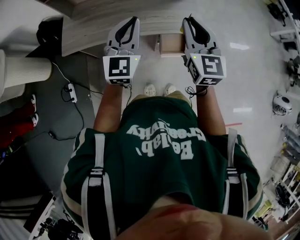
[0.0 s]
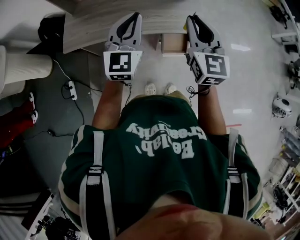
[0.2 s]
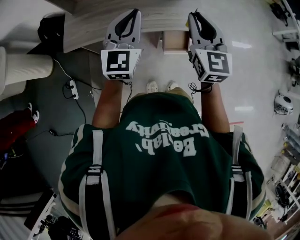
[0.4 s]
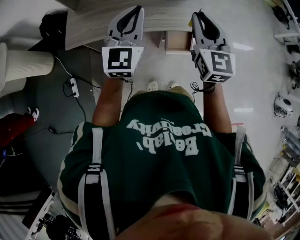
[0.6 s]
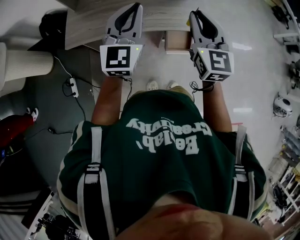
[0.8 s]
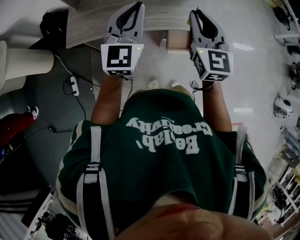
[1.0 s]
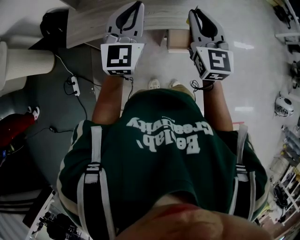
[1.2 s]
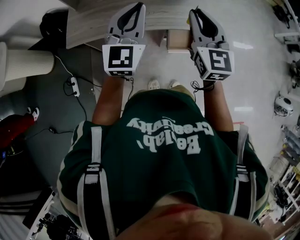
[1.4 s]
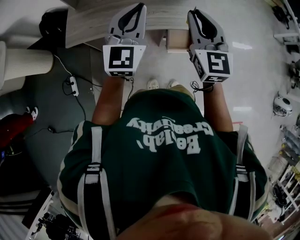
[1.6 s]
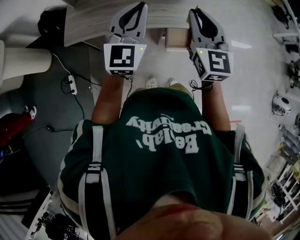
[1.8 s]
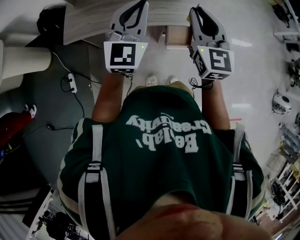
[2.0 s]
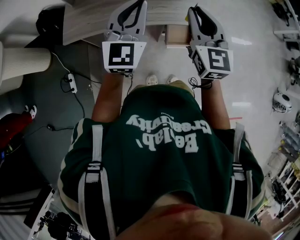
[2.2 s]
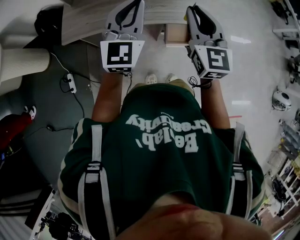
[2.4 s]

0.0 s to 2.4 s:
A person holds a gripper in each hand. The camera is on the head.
0.0 to 1.2 s: The left gripper moves roughly 5 cm.
1.2 to 2.4 s: The grippers move only a little.

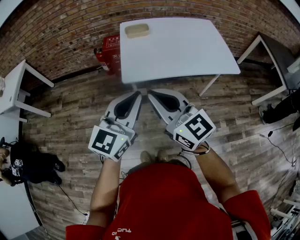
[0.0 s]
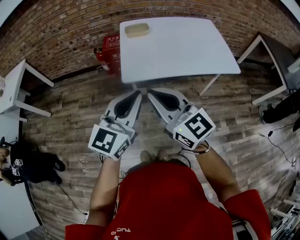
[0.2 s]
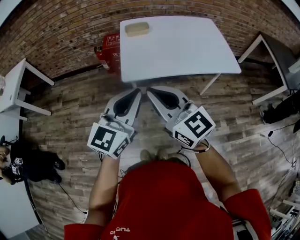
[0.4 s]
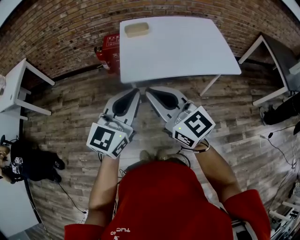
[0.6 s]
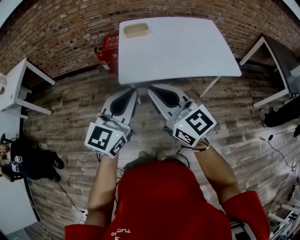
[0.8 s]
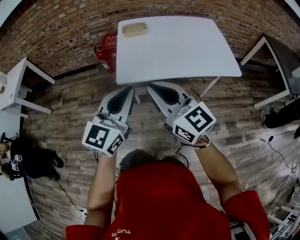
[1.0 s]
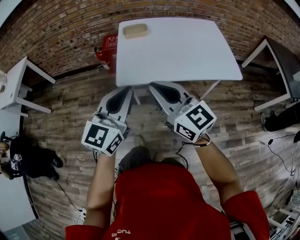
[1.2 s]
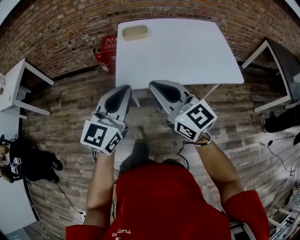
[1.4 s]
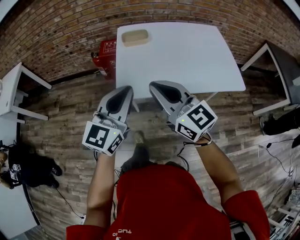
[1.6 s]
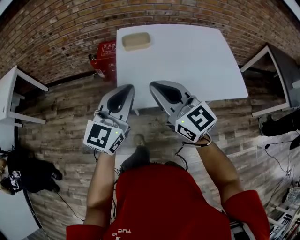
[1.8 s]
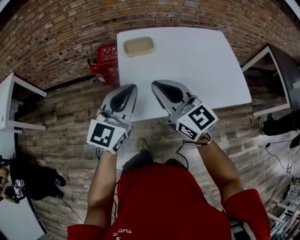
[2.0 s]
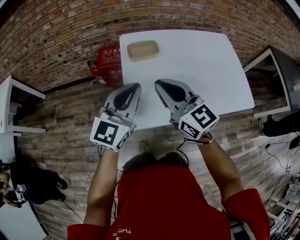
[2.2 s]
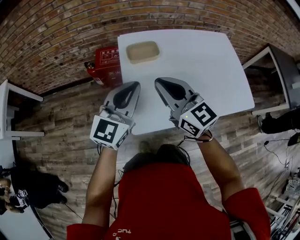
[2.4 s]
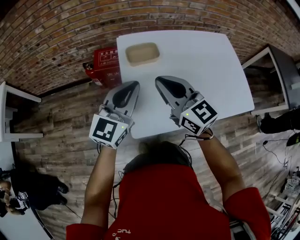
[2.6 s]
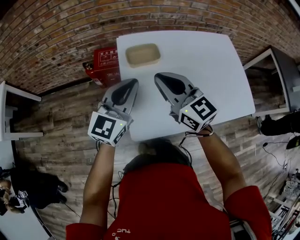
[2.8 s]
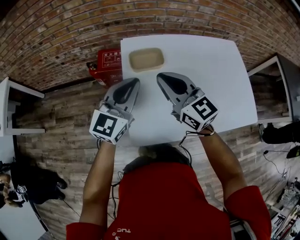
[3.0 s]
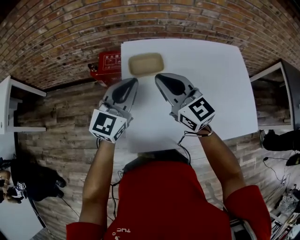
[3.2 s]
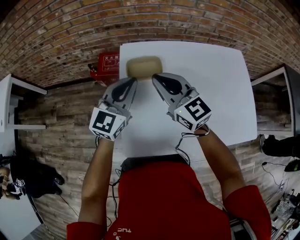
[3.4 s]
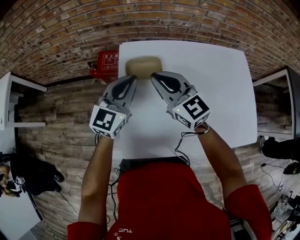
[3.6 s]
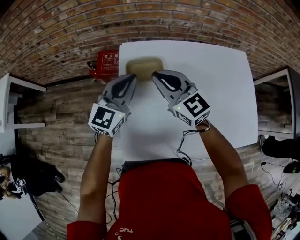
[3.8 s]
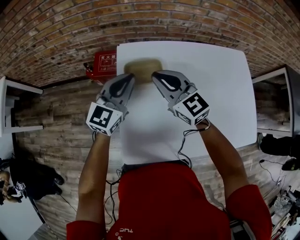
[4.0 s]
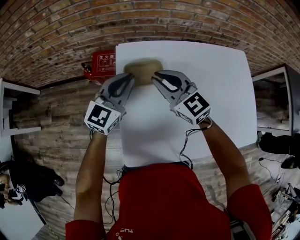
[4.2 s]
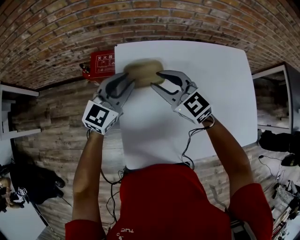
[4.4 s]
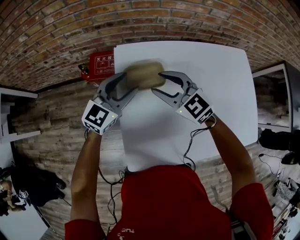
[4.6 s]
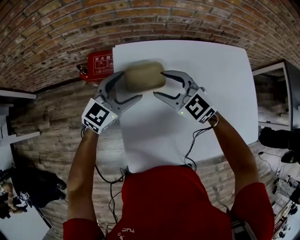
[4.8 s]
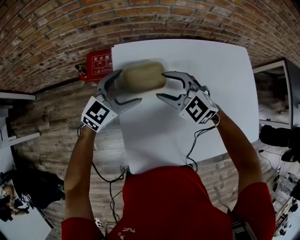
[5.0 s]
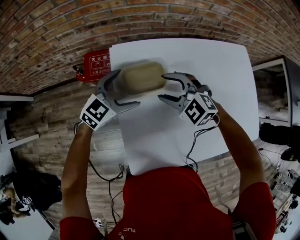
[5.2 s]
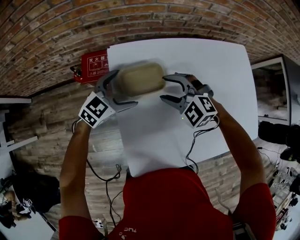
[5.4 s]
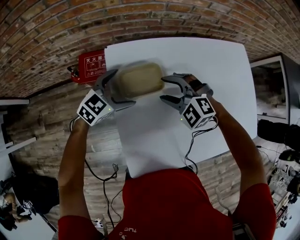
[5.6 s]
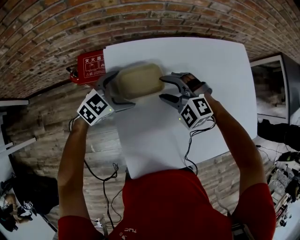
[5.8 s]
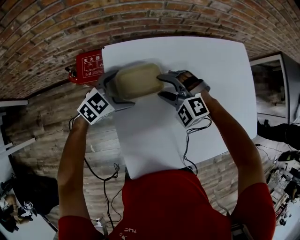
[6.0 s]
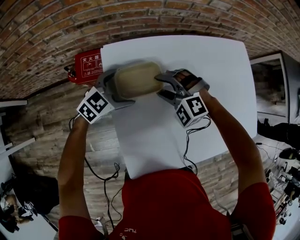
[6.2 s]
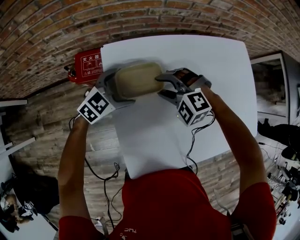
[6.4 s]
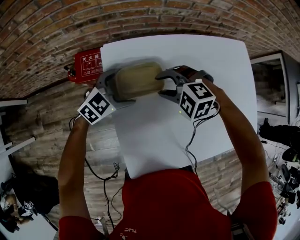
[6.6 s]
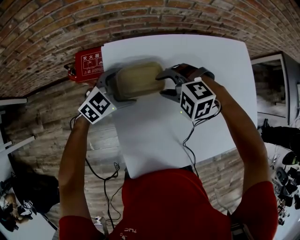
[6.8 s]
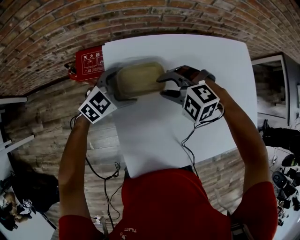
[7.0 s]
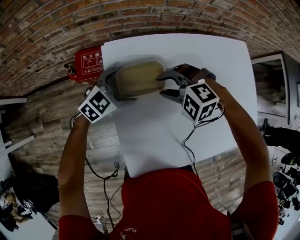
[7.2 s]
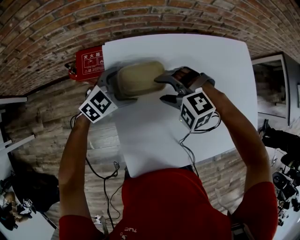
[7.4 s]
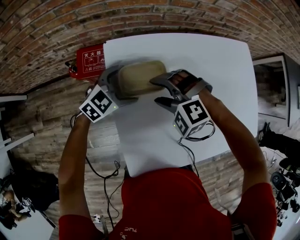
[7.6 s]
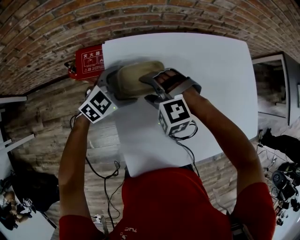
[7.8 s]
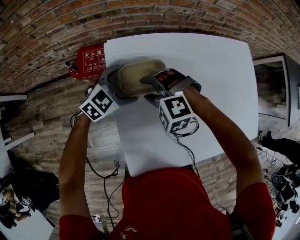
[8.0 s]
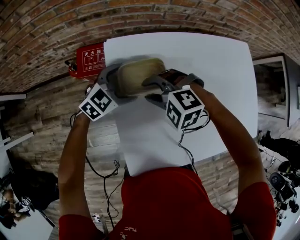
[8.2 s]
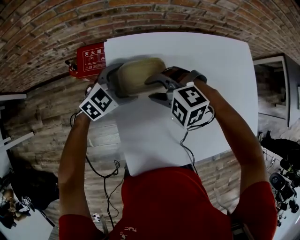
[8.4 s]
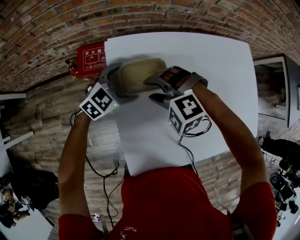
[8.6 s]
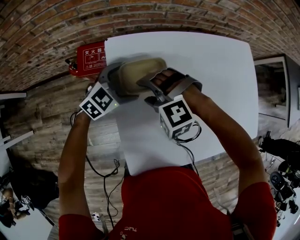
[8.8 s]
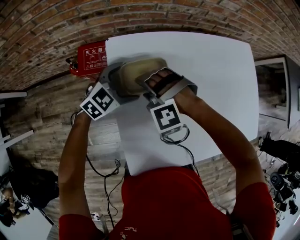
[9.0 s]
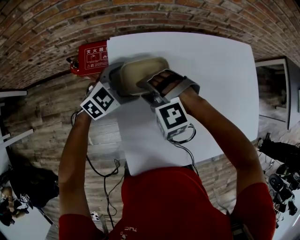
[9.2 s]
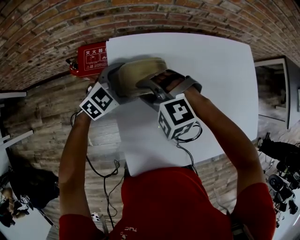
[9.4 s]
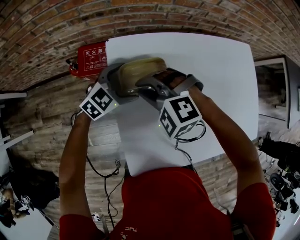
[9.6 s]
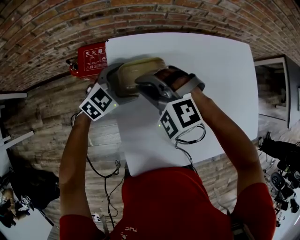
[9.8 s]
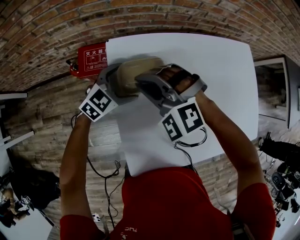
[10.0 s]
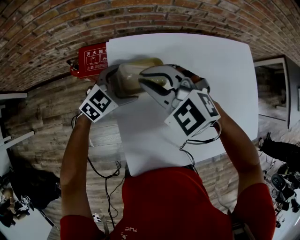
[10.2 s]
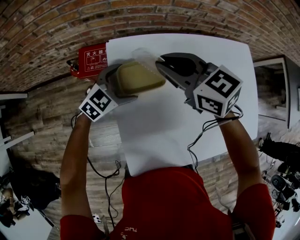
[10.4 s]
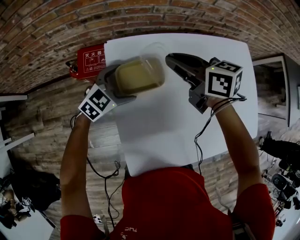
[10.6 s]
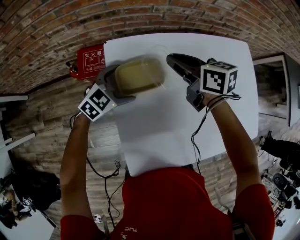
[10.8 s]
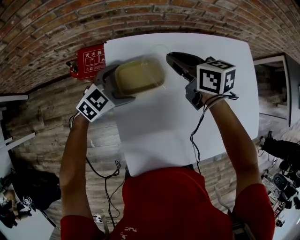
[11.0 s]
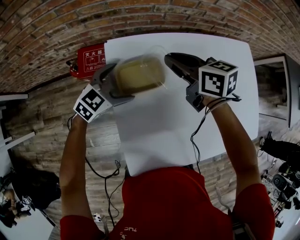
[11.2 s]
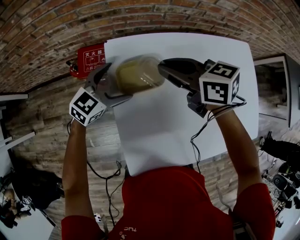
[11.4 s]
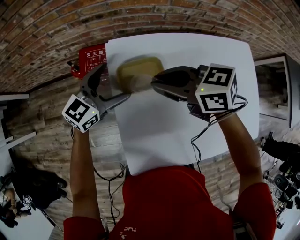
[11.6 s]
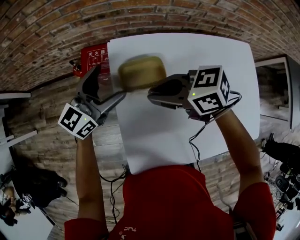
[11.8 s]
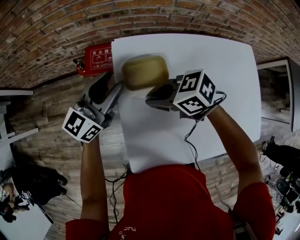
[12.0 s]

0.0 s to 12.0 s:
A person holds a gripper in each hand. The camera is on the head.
0.0 to 1.6 s: The grippers both shift forward by about 15 cm.
1.6 to 3.0 s: The grippers both shift forward by approximately 30 cm.
3.0 to 4.4 s: The grippers both shift forward and downward by about 15 cm. The right gripper swivels approximately 20 degrees.
4.4 to 6.0 s: The two grippers go roughly 15 cm downward. The left gripper rotates some 40 degrees, and opens up; the right gripper changes its angle by about 50 degrees, and opens its fingers.
6.0 to 7.6 s: The right gripper shifts by about 5 cm.
7.6 to 9.0 s: The right gripper ends up about 5 cm from where it was.
9.0 to 10.4 s: The right gripper is displaced upward and forward by approximately 15 cm, rolls clockwise, seen from behind, by roughly 70 degrees, and closes its fingers.
10.4 to 12.0 s: The right gripper goes up and down, about 10 cm each way, reversing 2 times, and turns by about 40 degrees, while the left gripper goes about 15 cm upward, points its fingers approximately 40 degrees further upward, and closes up.

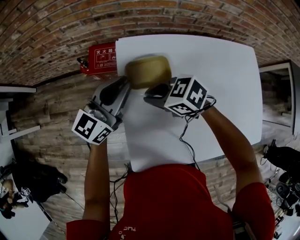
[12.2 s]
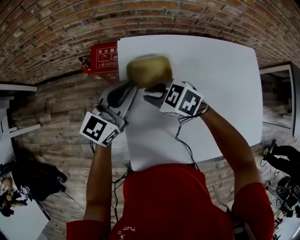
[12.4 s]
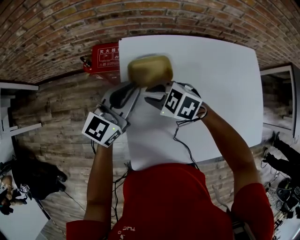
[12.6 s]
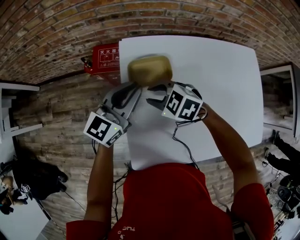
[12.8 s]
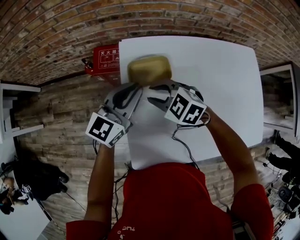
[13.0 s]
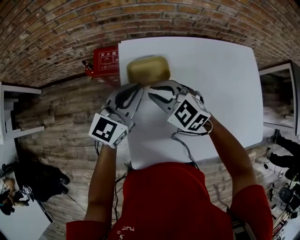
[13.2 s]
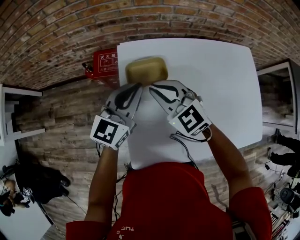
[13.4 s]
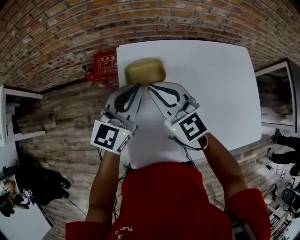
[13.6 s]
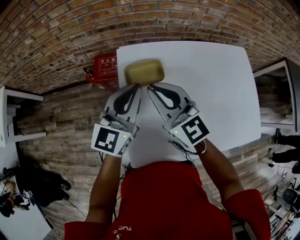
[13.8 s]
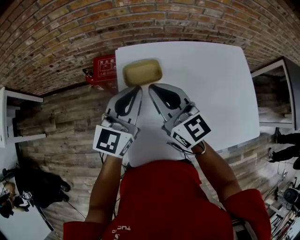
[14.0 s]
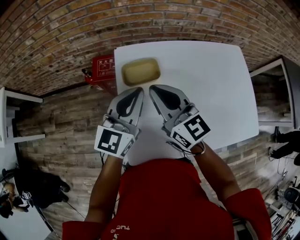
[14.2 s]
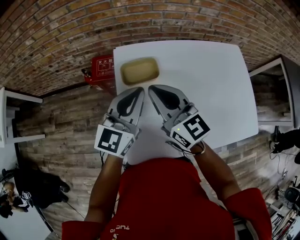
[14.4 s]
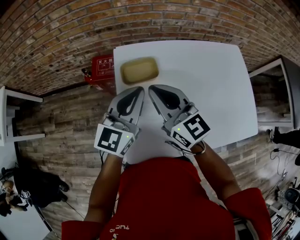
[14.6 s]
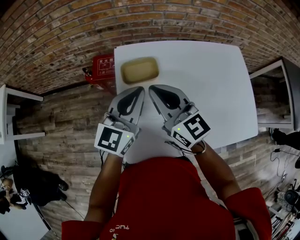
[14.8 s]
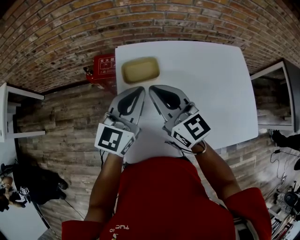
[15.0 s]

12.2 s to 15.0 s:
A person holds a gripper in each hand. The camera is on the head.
12.2 to 13.6 s: The left gripper changes place by roughly 10 cm; the right gripper is displaced upward by about 10 cm, and tips its fingers upward by roughly 30 degrees.
13.6 to 15.0 s: Both grippers move backward, approximately 5 cm. The right gripper turns by about 20 degrees.

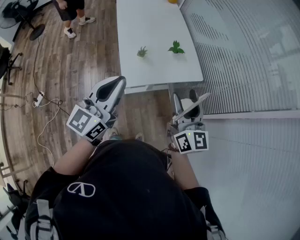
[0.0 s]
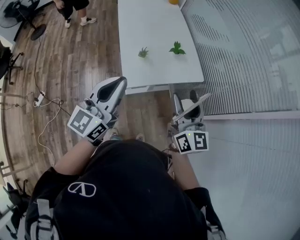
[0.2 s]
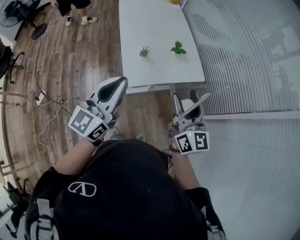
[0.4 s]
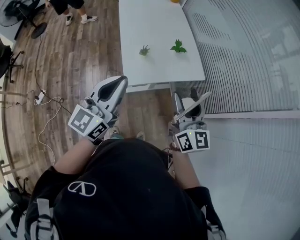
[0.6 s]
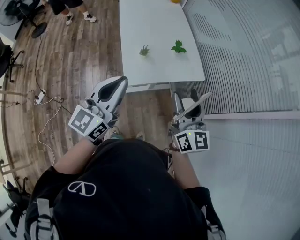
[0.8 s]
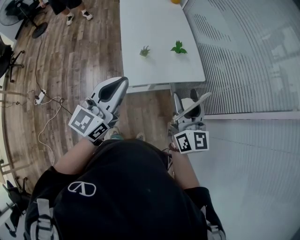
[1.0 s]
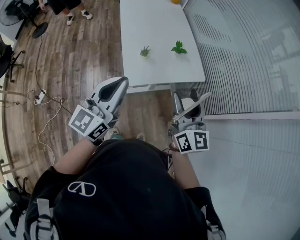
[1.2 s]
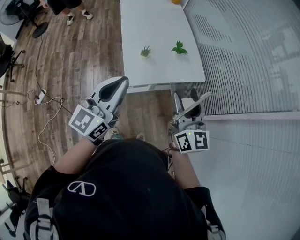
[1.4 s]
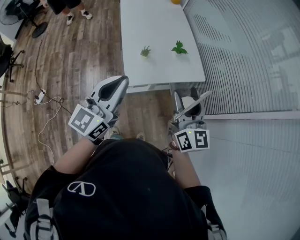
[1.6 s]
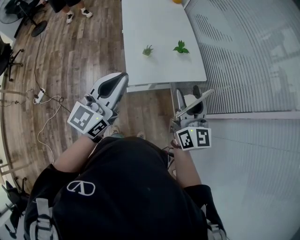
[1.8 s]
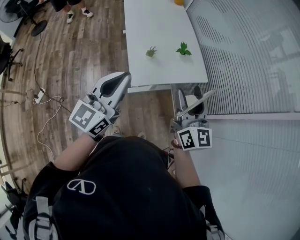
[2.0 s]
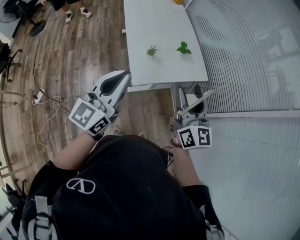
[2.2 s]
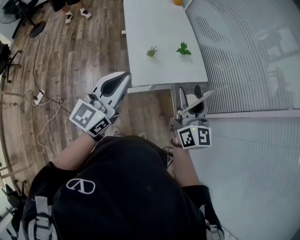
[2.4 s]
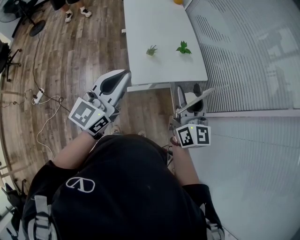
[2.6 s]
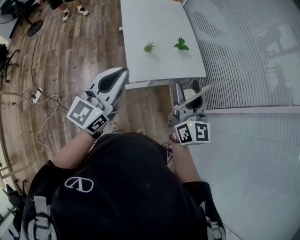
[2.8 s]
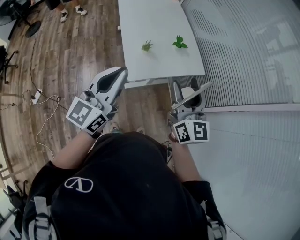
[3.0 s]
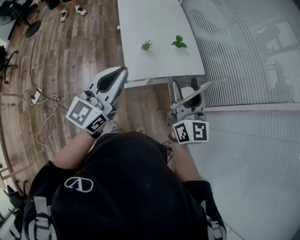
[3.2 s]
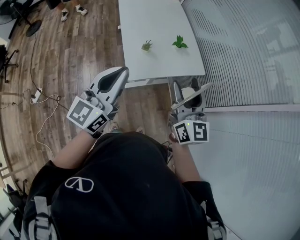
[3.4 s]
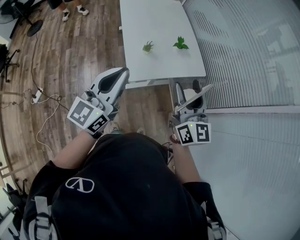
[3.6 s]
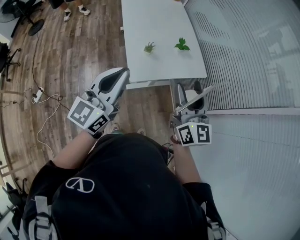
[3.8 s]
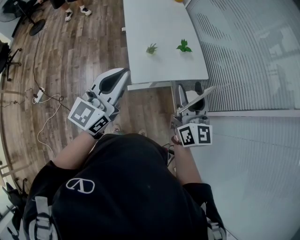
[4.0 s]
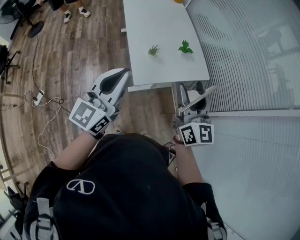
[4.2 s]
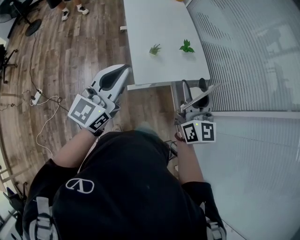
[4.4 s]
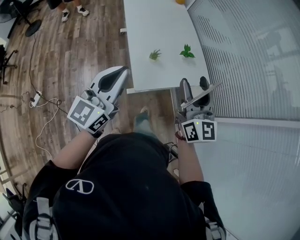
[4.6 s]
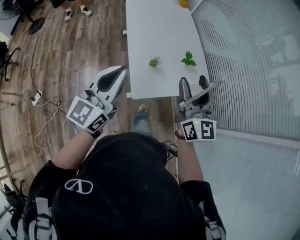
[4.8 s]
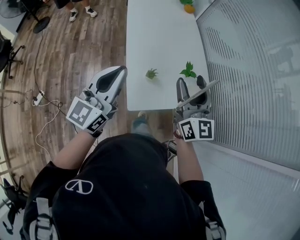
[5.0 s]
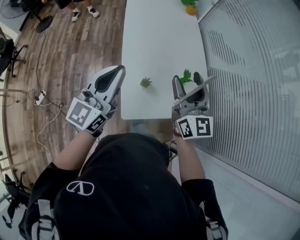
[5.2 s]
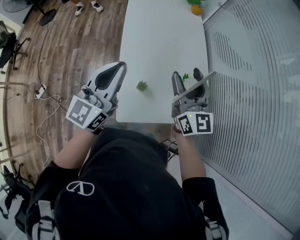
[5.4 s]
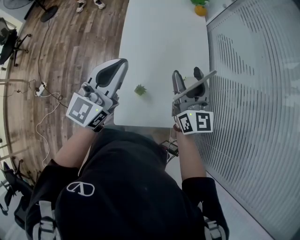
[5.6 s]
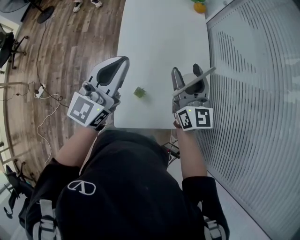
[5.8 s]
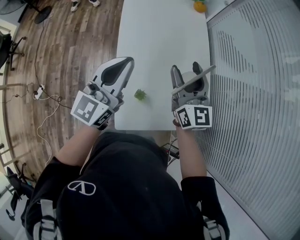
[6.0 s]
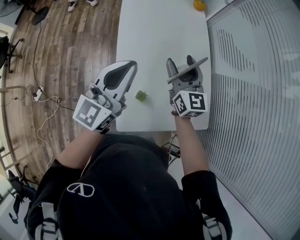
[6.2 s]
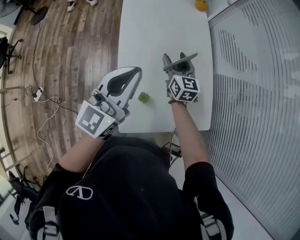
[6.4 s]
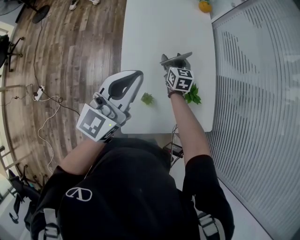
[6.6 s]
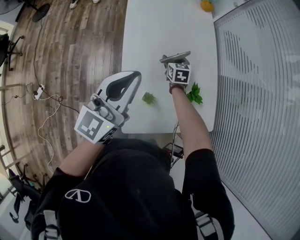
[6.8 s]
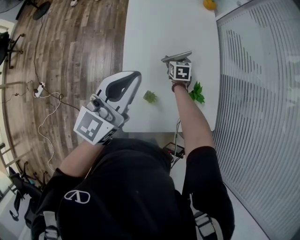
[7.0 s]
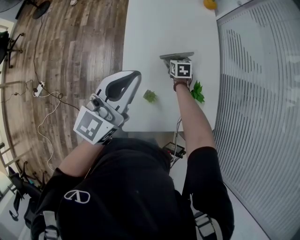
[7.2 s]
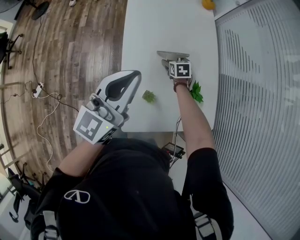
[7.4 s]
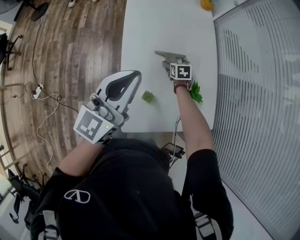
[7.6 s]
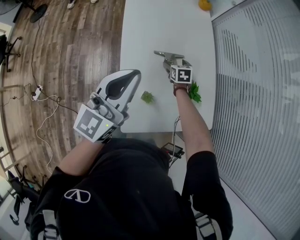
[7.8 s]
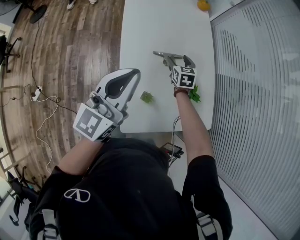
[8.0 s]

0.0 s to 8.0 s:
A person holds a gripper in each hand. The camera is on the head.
0.0 to 3.2 s: There are only small adjustments of the grippers.
3.2 to 4.8 s: Both grippers move forward and to the left, about 15 cm.
4.8 to 6.4 s: The left gripper travels forward by roughly 30 cm. Meanwhile the right gripper shifts about 50 cm forward and downward, and rotates roughly 30 degrees.
6.4 to 8.0 s: The right gripper travels downward by some 10 cm, and swivels approximately 20 degrees.
